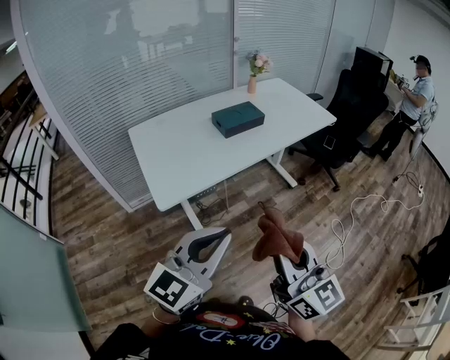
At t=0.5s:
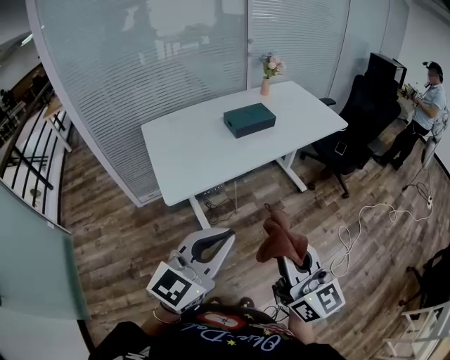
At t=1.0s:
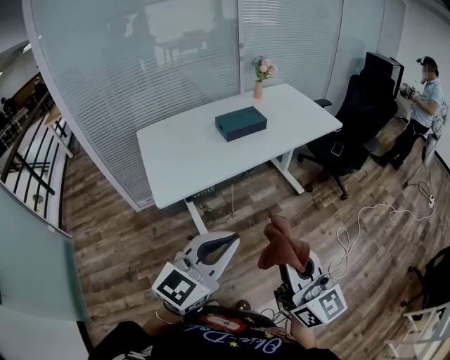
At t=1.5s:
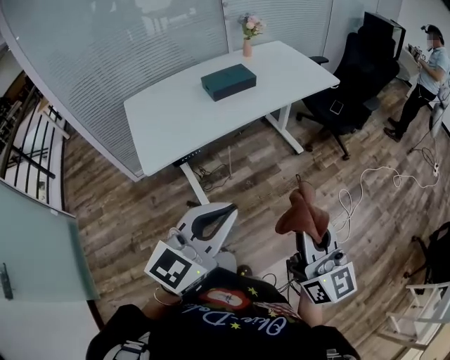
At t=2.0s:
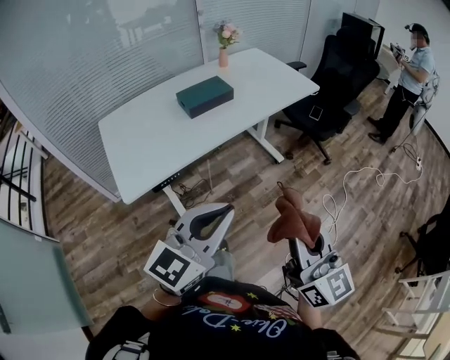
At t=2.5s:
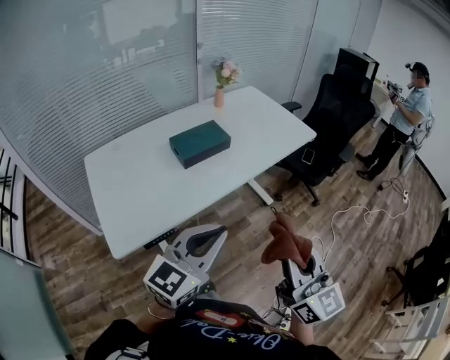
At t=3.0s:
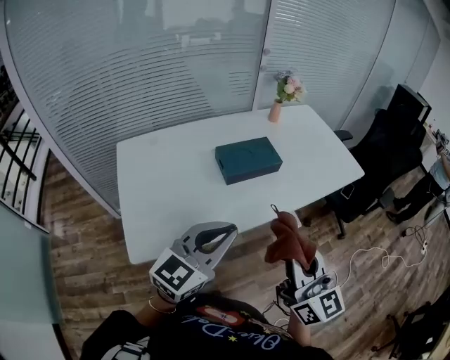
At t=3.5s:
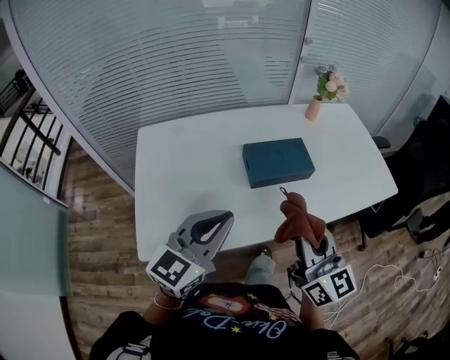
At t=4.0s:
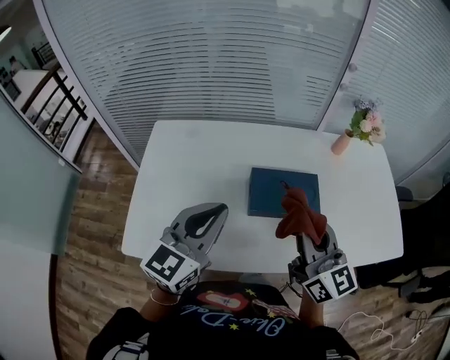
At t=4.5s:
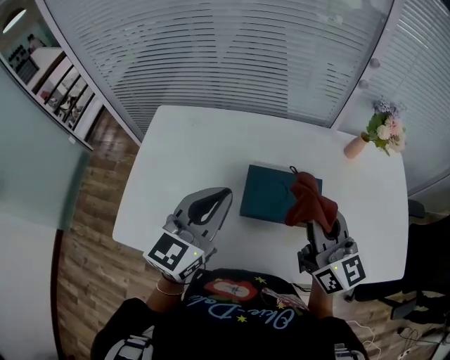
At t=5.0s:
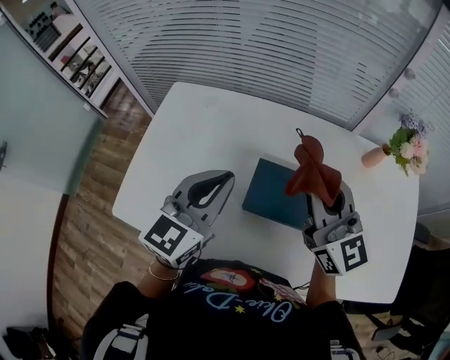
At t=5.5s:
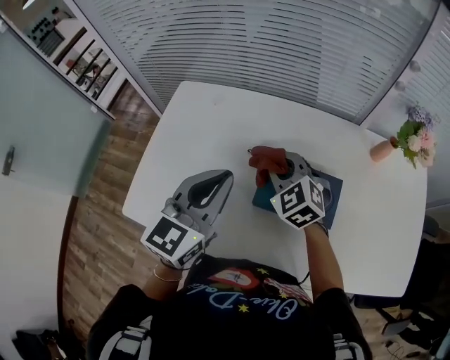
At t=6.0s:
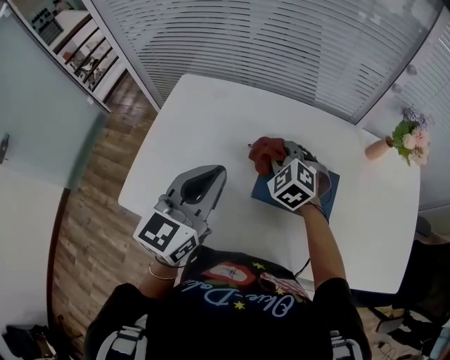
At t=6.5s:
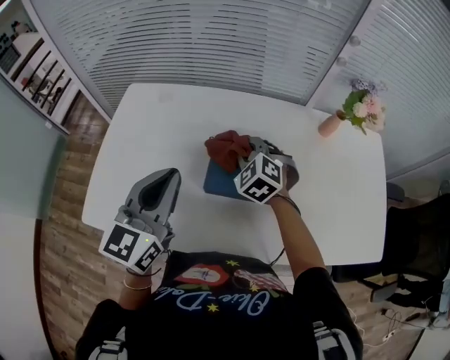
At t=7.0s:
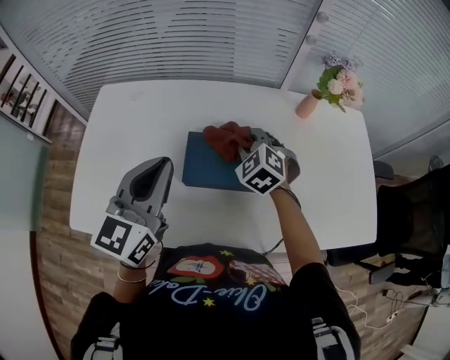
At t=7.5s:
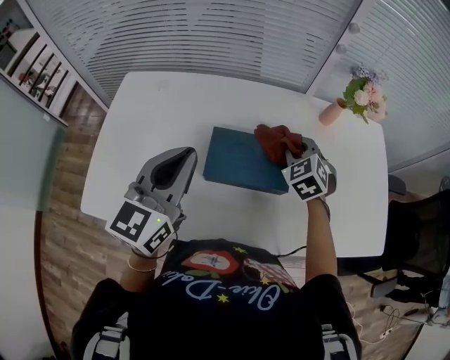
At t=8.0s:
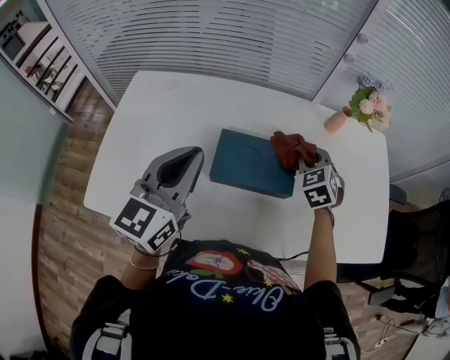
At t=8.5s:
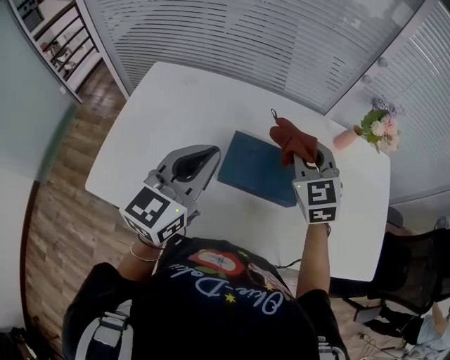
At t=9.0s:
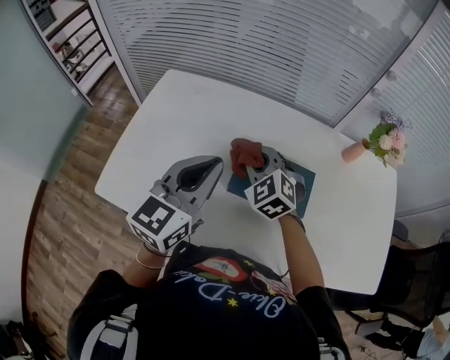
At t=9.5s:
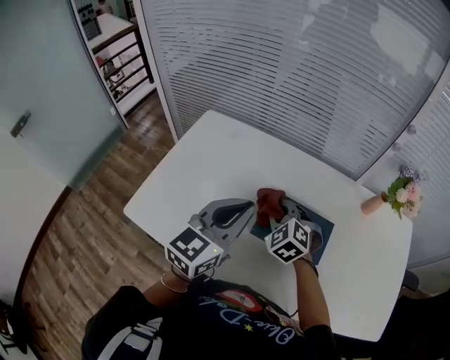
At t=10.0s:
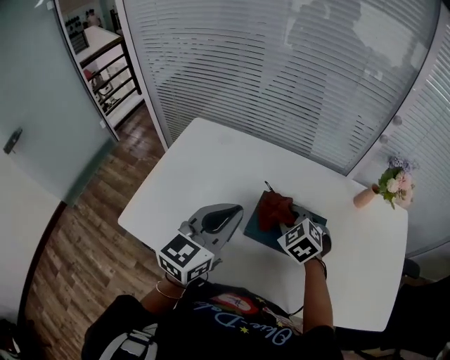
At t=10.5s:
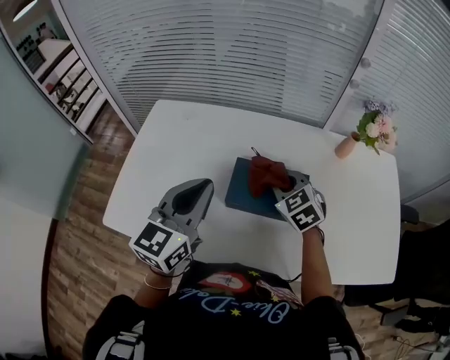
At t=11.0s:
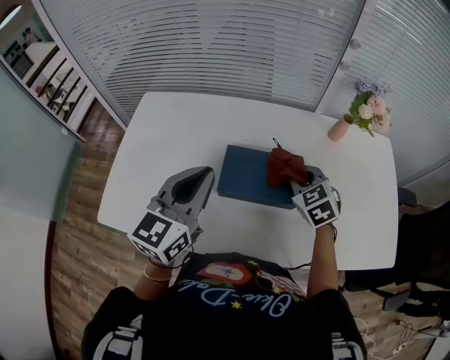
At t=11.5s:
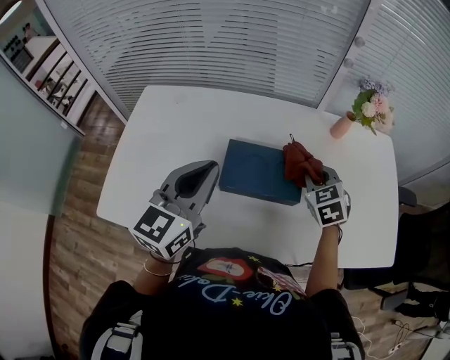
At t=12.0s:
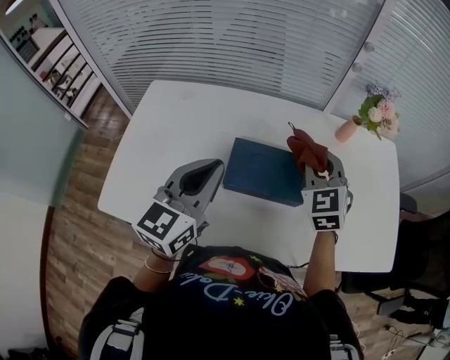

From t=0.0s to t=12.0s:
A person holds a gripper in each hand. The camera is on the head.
From t=0.0s to t=2.0s: The left gripper shifts approximately 15 cm to the right and forward; the right gripper is displaced to the right by some 15 cm.
From t=2.0s to t=4.0s: The pair of grippers is taken approximately 50 cm. The left gripper changes its angle by approximately 40 degrees; the right gripper swivels some 40 degrees.
From t=4.0s to t=6.0s: The right gripper shifts some 25 cm forward and downward, and angles its fingers downward, by some 50 degrees.
From t=6.0s to t=8.0s: The left gripper travels to the right by about 5 cm; the right gripper travels to the right by approximately 25 cm, and swivels approximately 30 degrees.
From t=8.0s to t=10.0s: The right gripper shifts about 15 cm to the left, and swivels about 30 degrees.
From t=10.0s to t=12.0s: The right gripper shifts about 15 cm to the right and upward, and rotates some 40 degrees.

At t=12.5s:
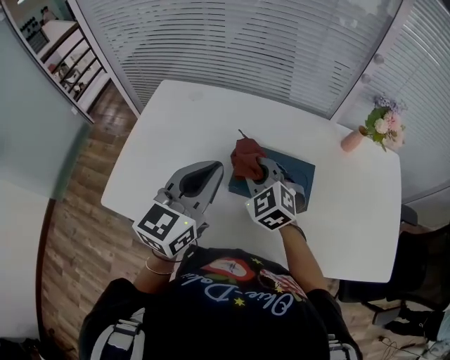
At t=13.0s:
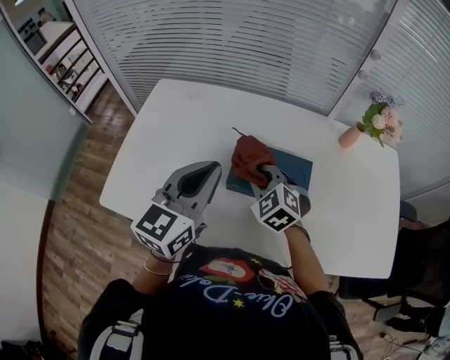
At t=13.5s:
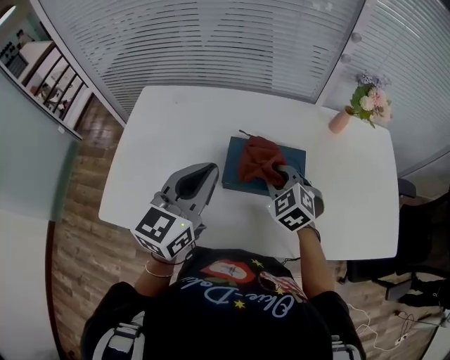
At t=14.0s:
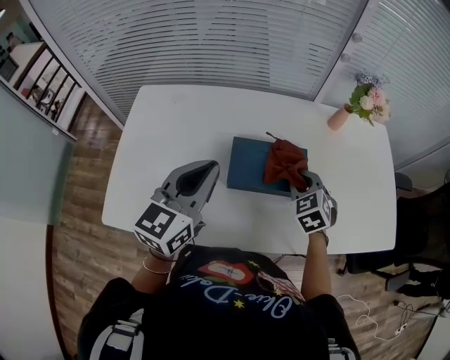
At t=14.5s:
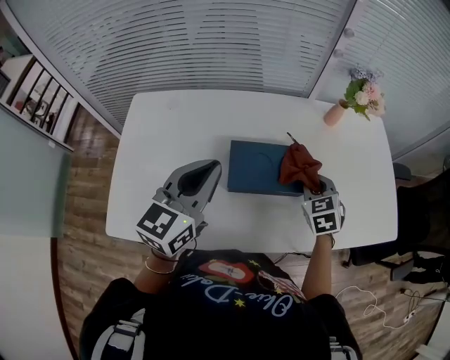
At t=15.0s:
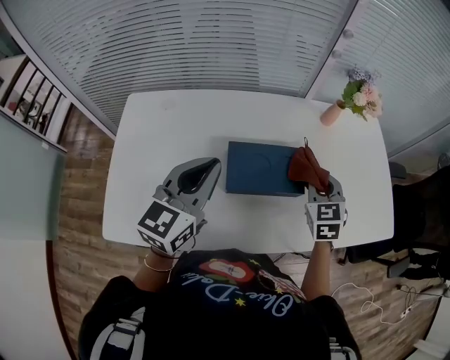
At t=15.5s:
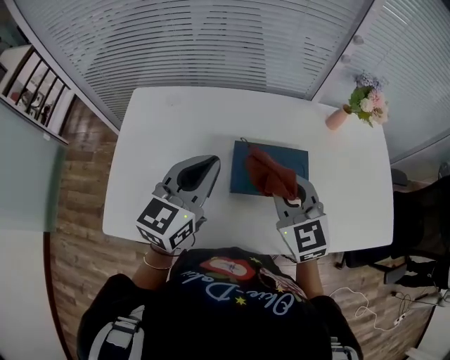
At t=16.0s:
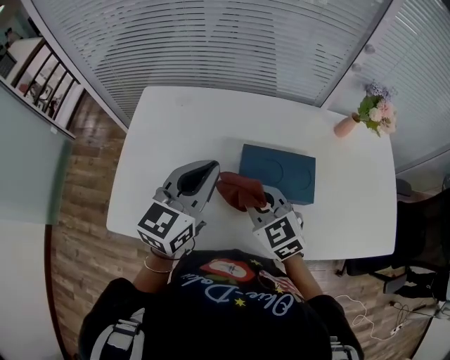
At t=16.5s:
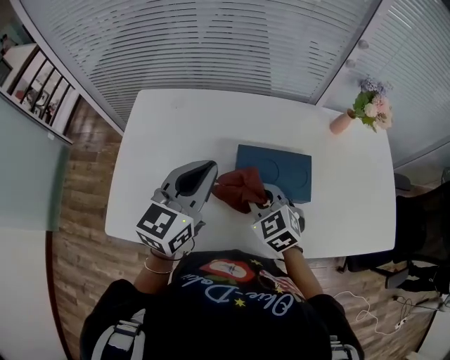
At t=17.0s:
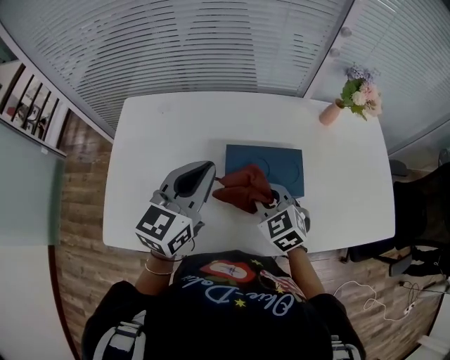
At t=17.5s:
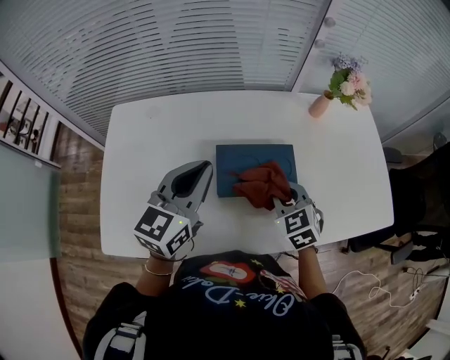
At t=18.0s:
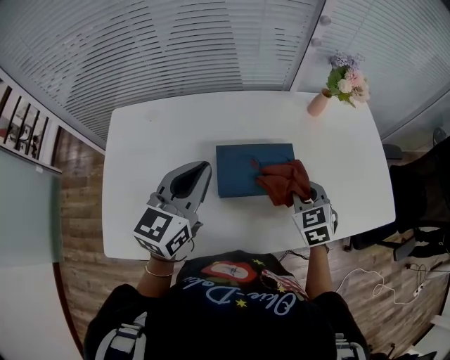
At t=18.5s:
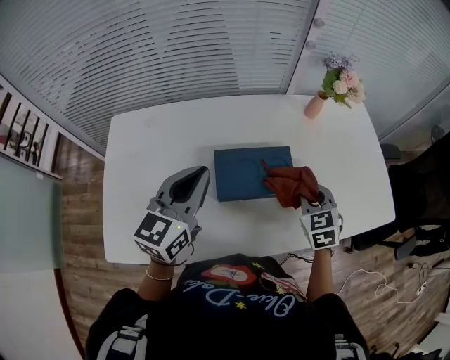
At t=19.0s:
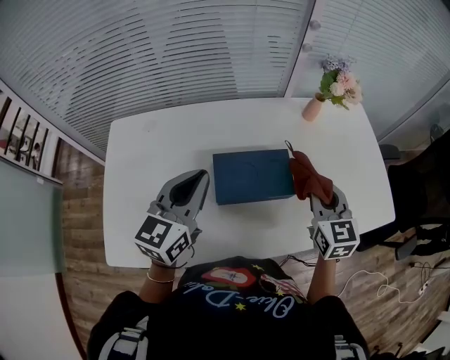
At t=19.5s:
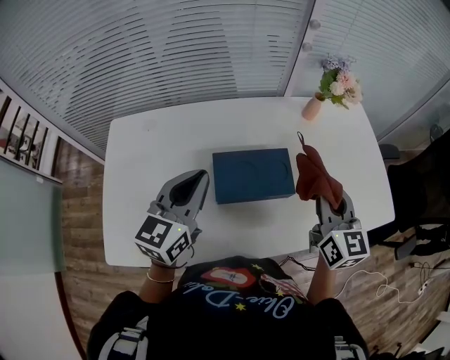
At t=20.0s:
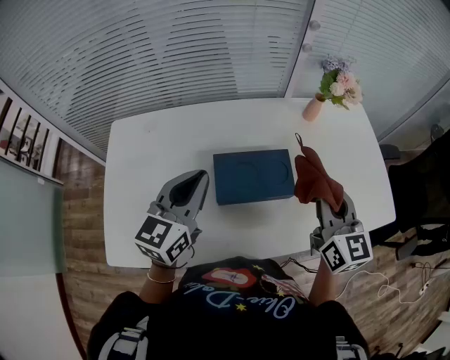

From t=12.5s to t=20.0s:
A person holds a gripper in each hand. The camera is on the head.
From t=12.5s to t=14.5s: The right gripper shifts some 20 cm to the right, and changes its angle by some 40 degrees.
From t=14.5s to t=16.5s: The right gripper goes some 20 cm to the left, and swivels some 30 degrees.
From t=16.5s to t=18.0s: The right gripper shifts about 20 cm to the right, and rotates roughly 30 degrees.
From t=18.0s to t=20.0s: The right gripper is displaced upward by roughly 15 cm, and tips its fingers upward by approximately 30 degrees.

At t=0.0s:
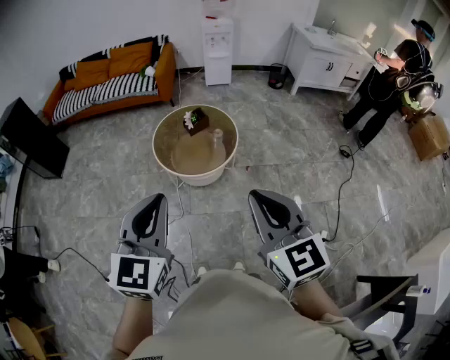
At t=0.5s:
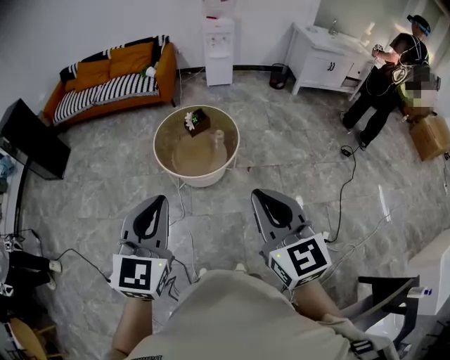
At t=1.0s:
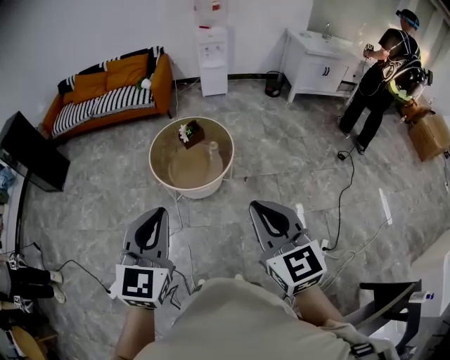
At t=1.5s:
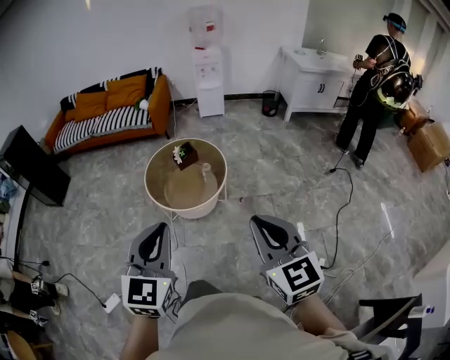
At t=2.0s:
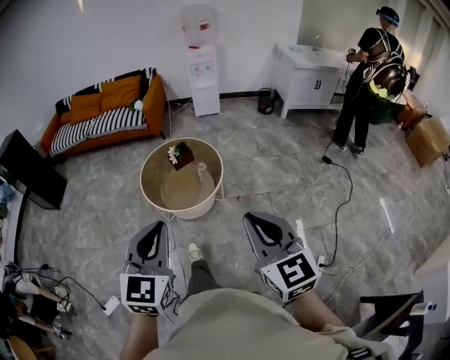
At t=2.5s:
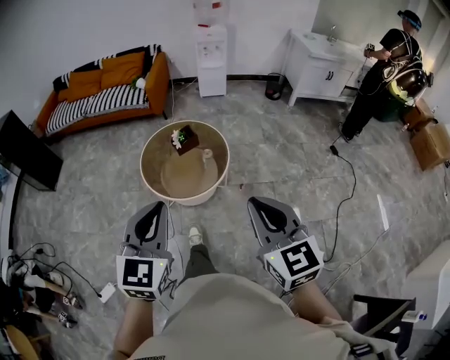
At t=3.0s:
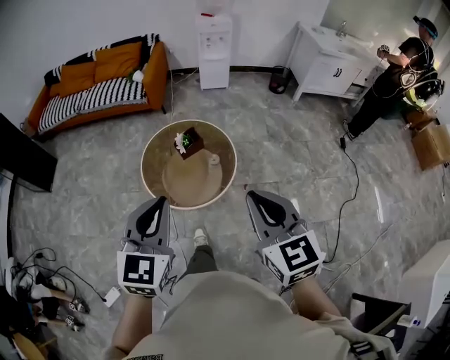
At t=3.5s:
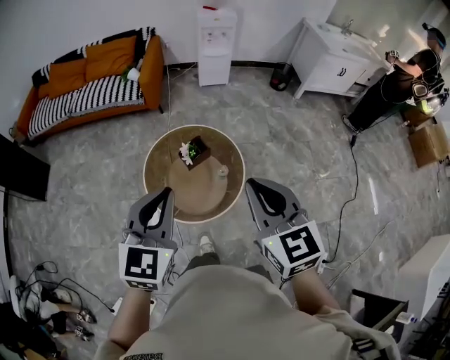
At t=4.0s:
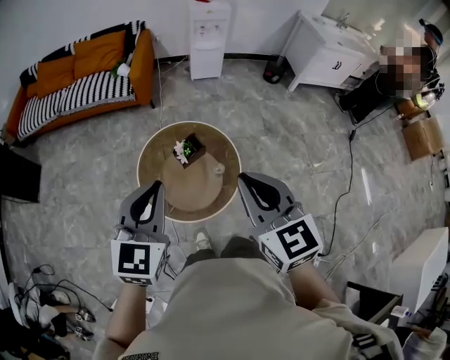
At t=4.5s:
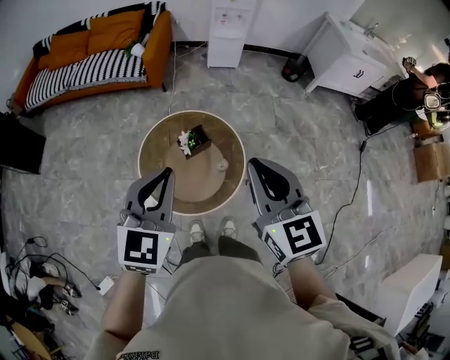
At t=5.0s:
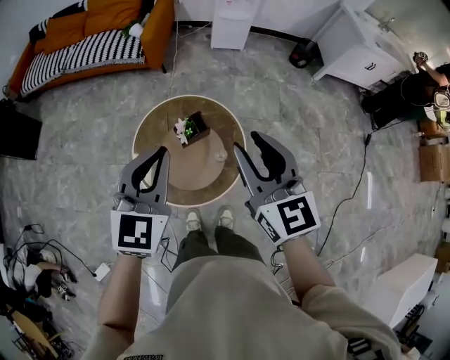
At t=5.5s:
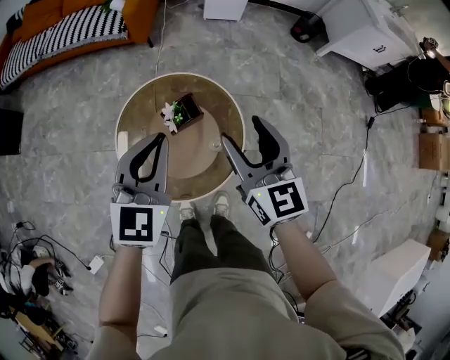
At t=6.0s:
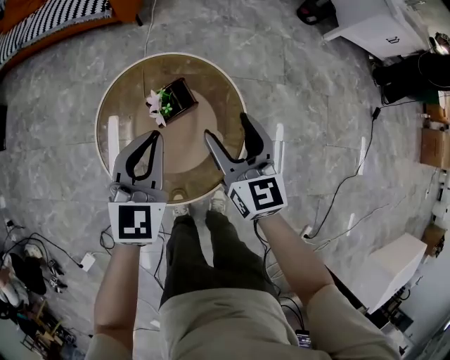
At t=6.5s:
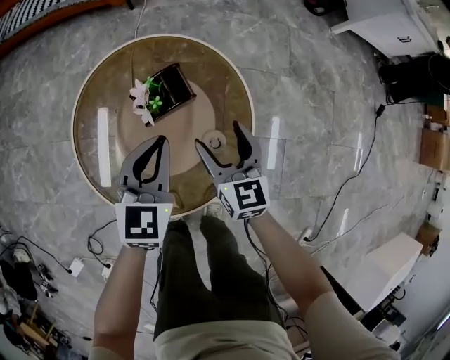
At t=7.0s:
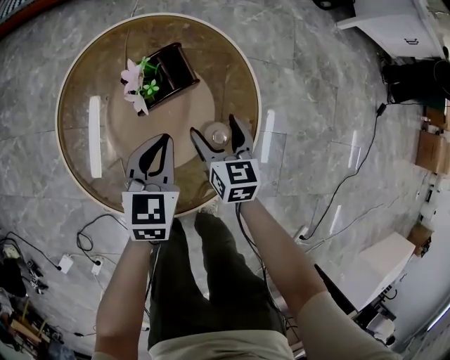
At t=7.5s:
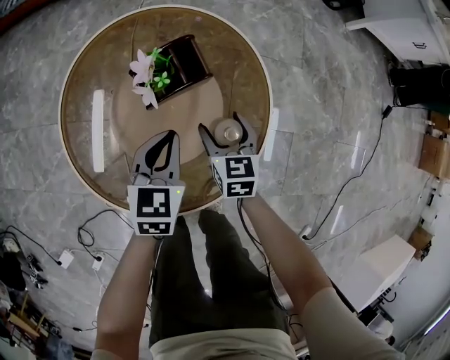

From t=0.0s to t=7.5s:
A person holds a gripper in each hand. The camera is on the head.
From t=0.0s to t=2.0s: Both grippers travel together to the right, roughly 10 cm.
From t=2.0s to t=4.0s: Both grippers are carried forward, approximately 50 cm.
From t=4.0s to t=5.5s: The grippers both shift downward and forward by some 25 cm. The right gripper opens up.
From t=5.5s to t=7.5s: Both grippers move downward, about 50 cm. The left gripper swivels about 20 degrees; the right gripper changes its angle by some 30 degrees.
